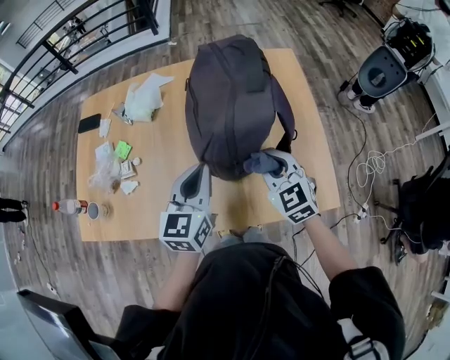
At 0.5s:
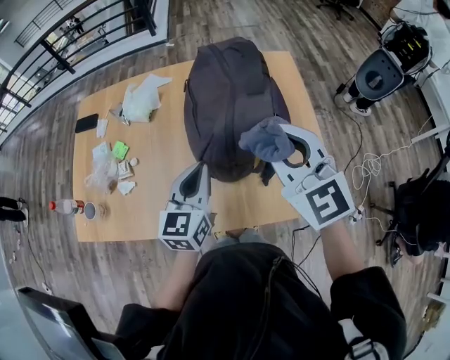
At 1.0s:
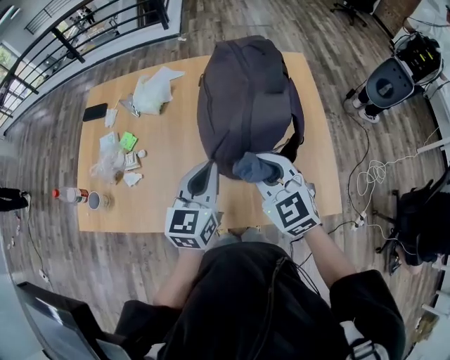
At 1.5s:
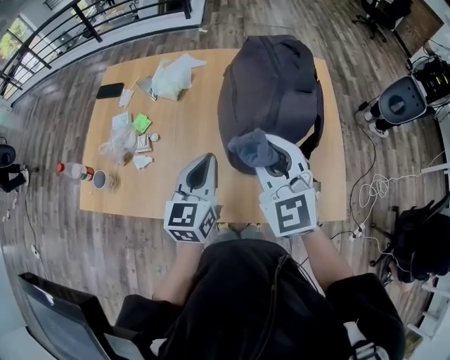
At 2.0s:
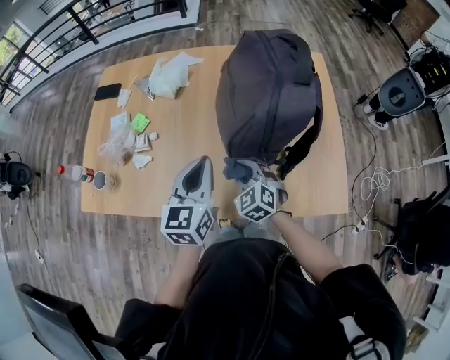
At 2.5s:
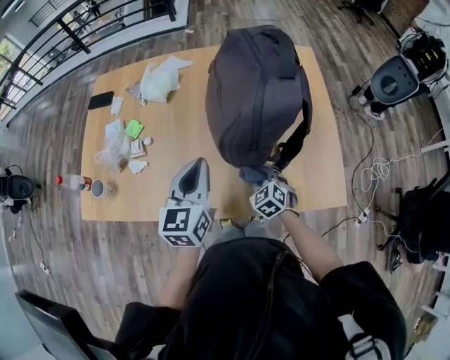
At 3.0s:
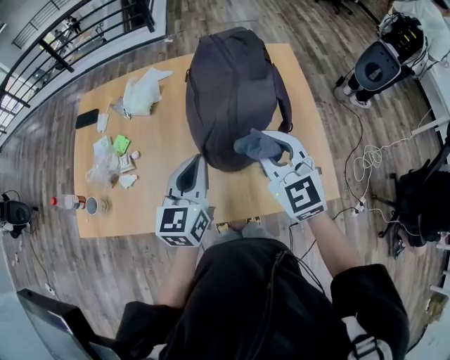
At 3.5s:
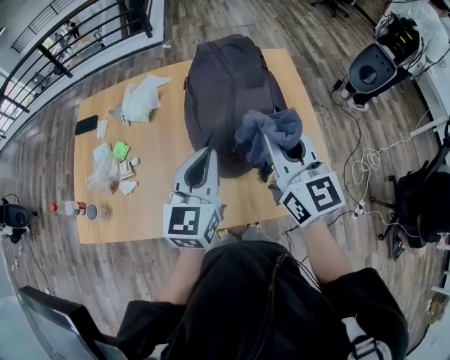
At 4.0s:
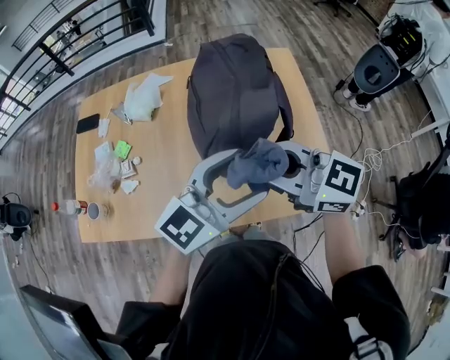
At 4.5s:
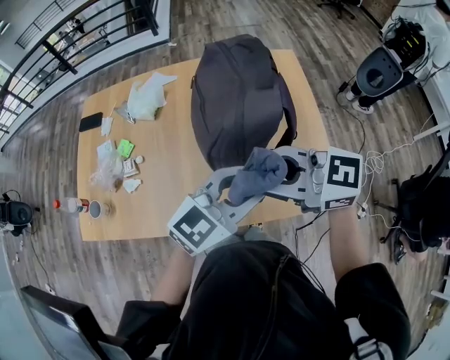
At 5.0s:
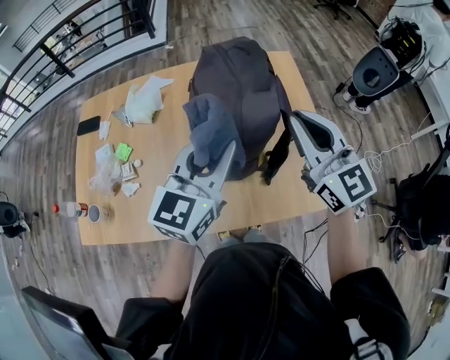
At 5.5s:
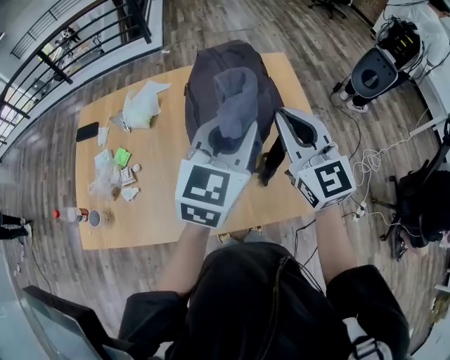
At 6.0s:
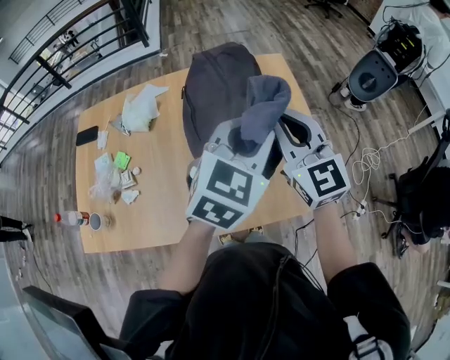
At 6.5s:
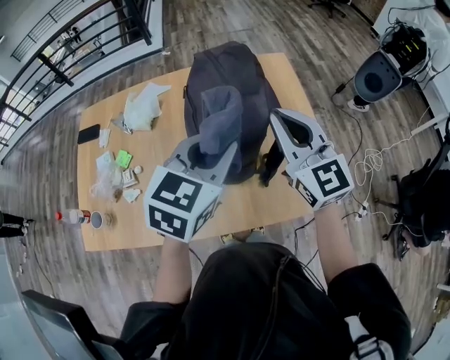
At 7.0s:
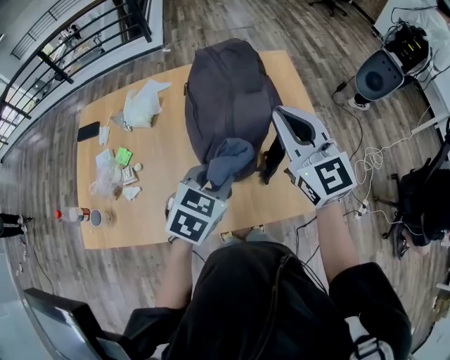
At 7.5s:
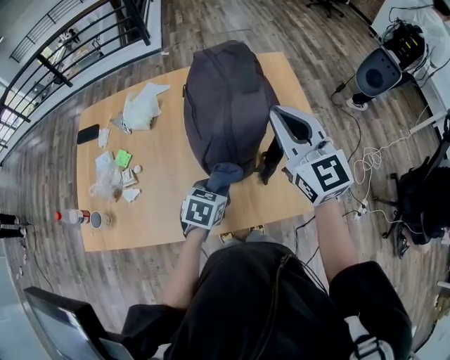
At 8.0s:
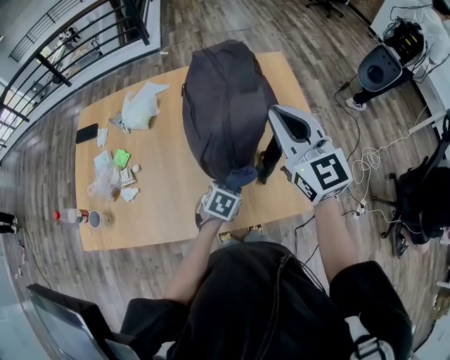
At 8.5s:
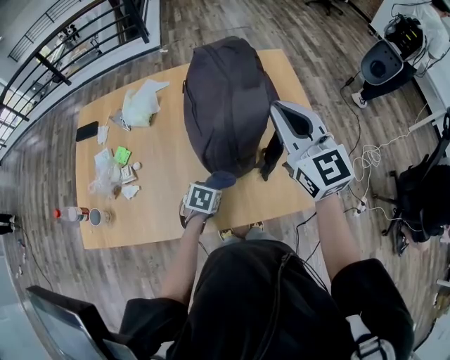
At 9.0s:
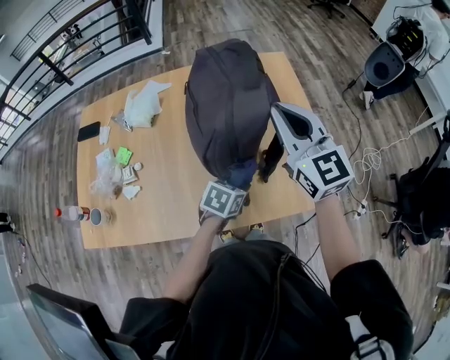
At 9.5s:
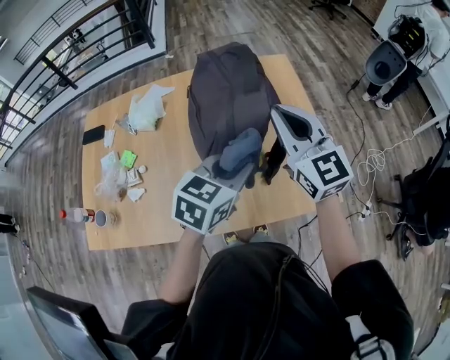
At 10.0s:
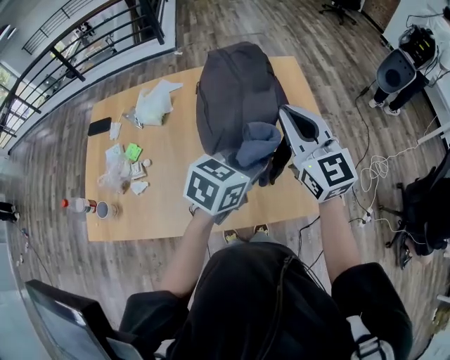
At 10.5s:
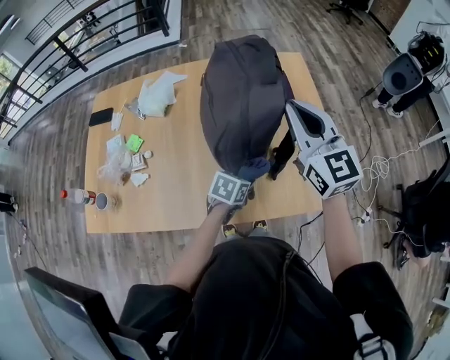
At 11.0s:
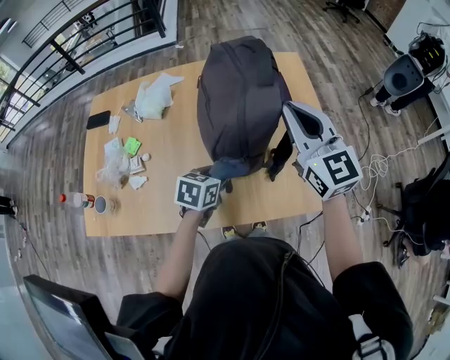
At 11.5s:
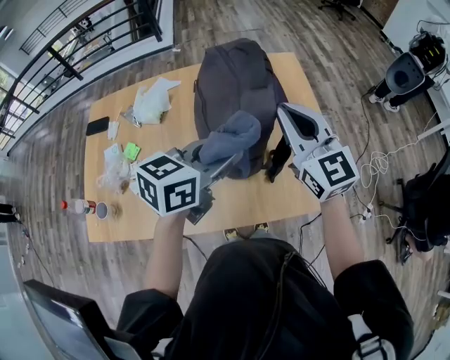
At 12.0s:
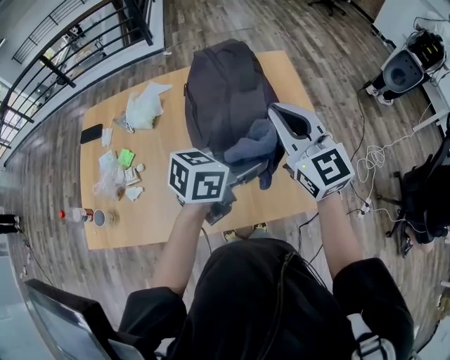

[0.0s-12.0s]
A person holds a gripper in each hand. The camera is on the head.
0.0s to 2.0s: The right gripper goes up and down, about 30 cm each way, reversing 3 times, while the left gripper heads to the left, covering roughly 5 cm.
2.0s to 4.0s: The right gripper moves upward, about 30 cm, and tilts its fingers approximately 30 degrees upward, while the left gripper shifts by about 20 cm, swivels about 50 degrees, and opens.
4.0s to 6.0s: The left gripper shifts by some 10 cm, changes its angle by about 30 degrees, and closes its fingers. Meanwhile the right gripper moves roughly 15 cm, and turns by some 50 degrees.
6.0s to 8.0s: The left gripper travels downward by some 30 cm, and points its fingers approximately 40 degrees further downward.
8.0s to 10.0s: The left gripper travels upward by some 20 cm, and swivels approximately 30 degrees.
10.0s to 12.0s: The left gripper moves up and down over roughly 30 cm, changing direction 2 times, and swivels about 20 degrees.

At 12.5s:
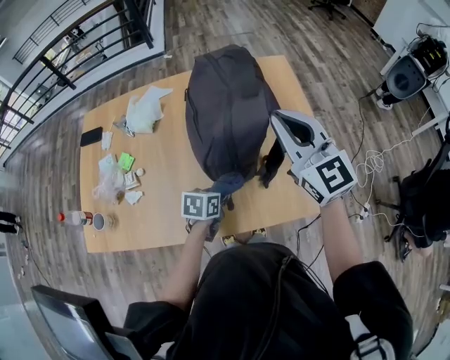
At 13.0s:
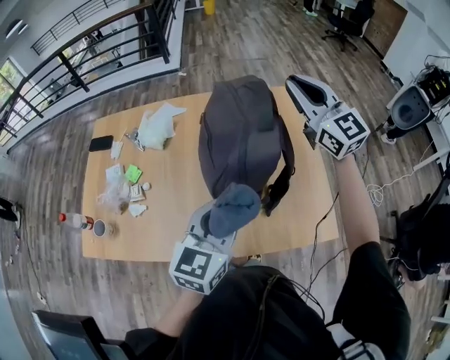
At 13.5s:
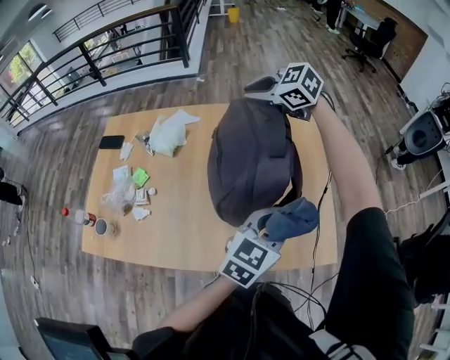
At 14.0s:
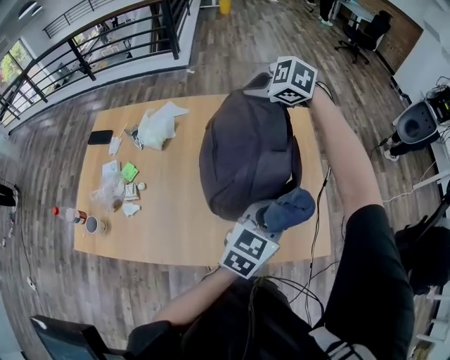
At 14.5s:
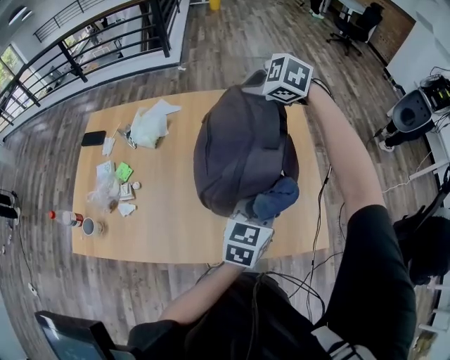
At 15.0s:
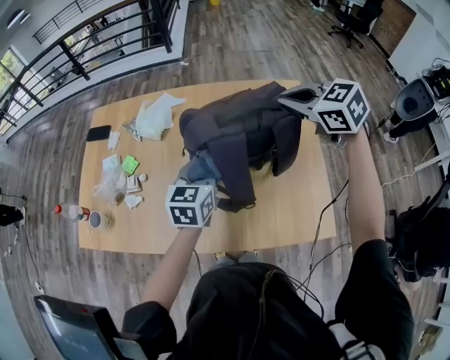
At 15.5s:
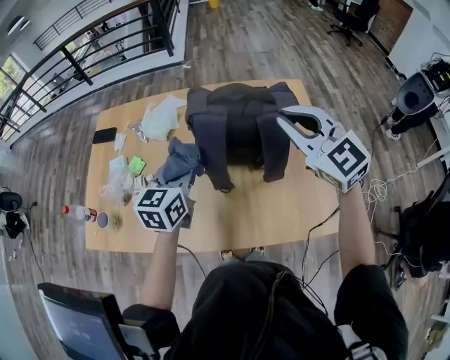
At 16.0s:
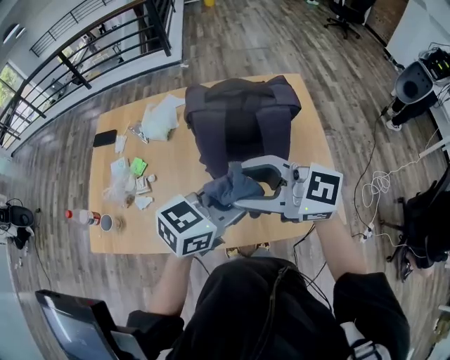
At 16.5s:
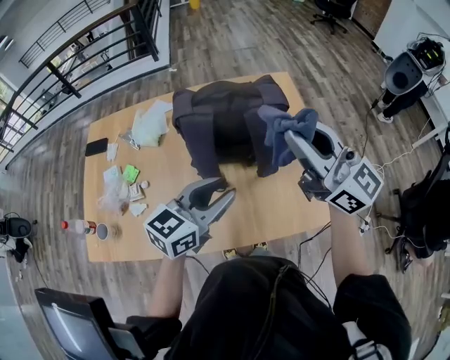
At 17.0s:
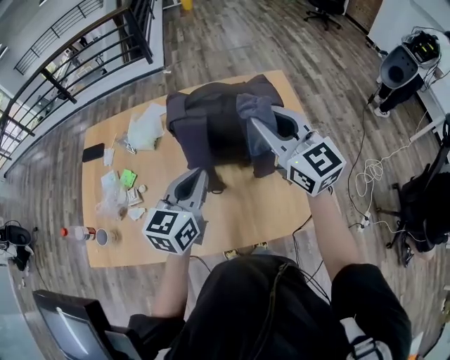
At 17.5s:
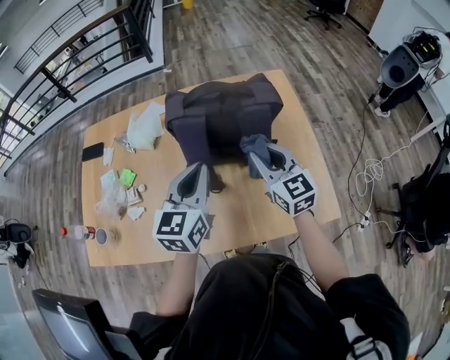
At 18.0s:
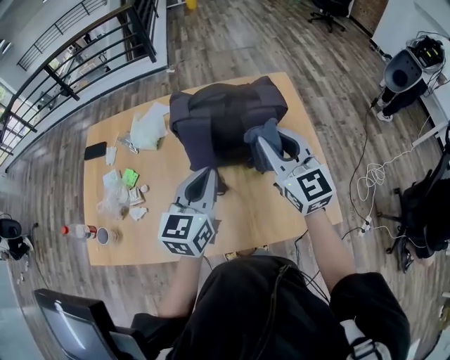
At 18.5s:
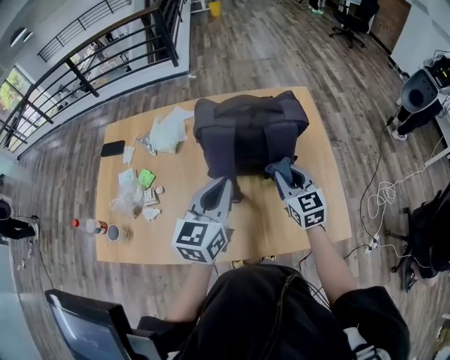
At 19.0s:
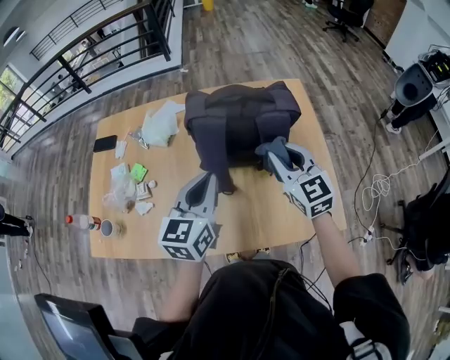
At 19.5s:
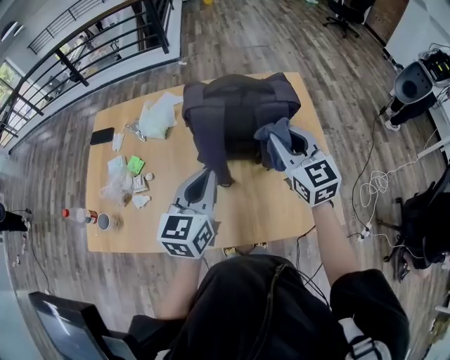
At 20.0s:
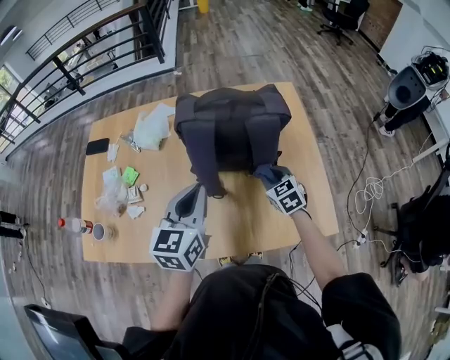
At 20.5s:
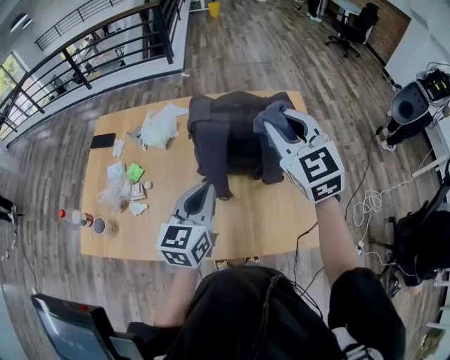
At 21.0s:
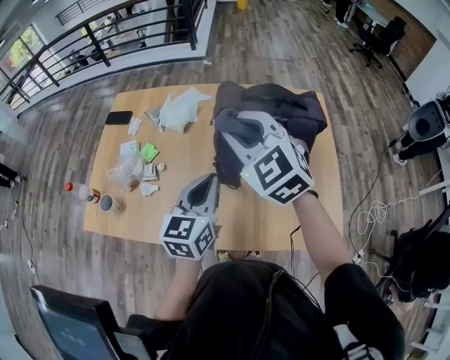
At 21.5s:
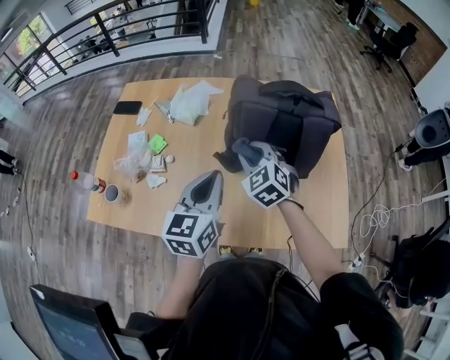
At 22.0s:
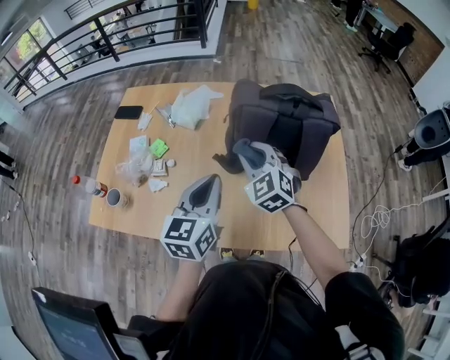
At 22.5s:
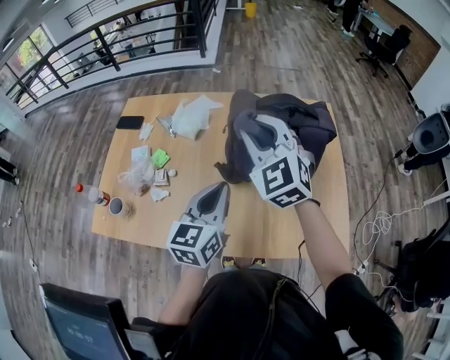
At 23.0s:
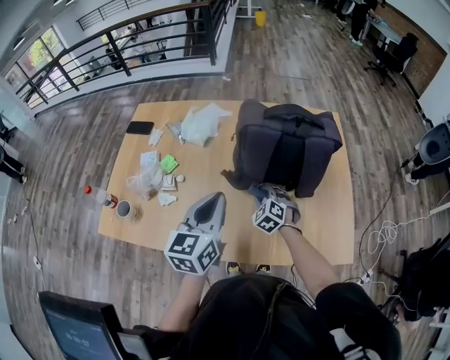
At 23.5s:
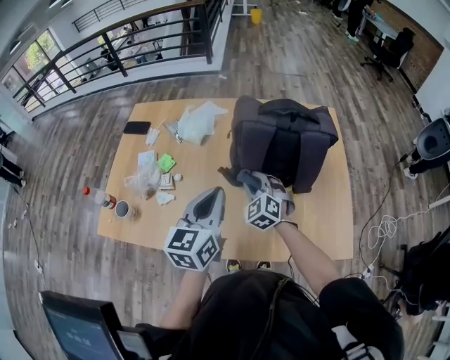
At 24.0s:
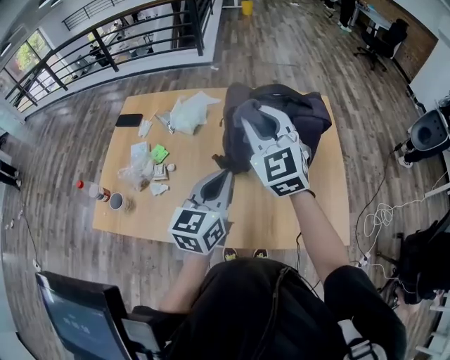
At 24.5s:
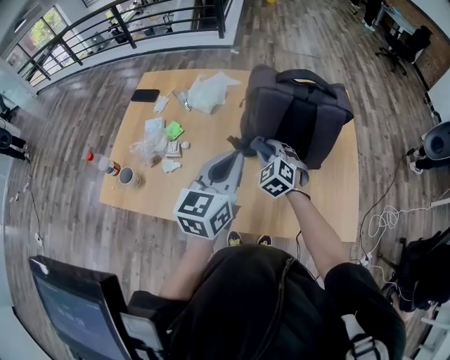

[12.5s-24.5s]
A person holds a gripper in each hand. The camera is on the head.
12.5s to 14.5s: The right gripper shifts about 25 cm forward, and tilts its fingers about 50 degrees downward. Meanwhile the left gripper travels upward and to the right by some 25 cm, and turns by roughly 40 degrees.
14.5s to 16.5s: The right gripper shifts by about 30 cm, tilts its fingers some 70 degrees upward, and opens and closes again, while the left gripper rotates roughly 20 degrees.
16.5s to 18.5s: The left gripper moves forward, about 5 cm, changes its angle by approximately 30 degrees, and closes its fingers, while the right gripper swings up and down, approximately 25 cm each way, with 2 reversals, and points its fingers some 30 degrees further downward.
18.5s to 20.5s: The right gripper moves up and down over some 30 cm, changing direction 2 times, and turns by roughly 20 degrees.
20.5s to 22.5s: The left gripper is displaced to the left by roughly 5 cm. The right gripper heads to the left, covering some 15 cm, and reaches roughly 20 cm downward, then returns.
22.5s to 24.5s: The right gripper swings up and down, about 35 cm each way, with 2 reversals, and turns by some 20 degrees.

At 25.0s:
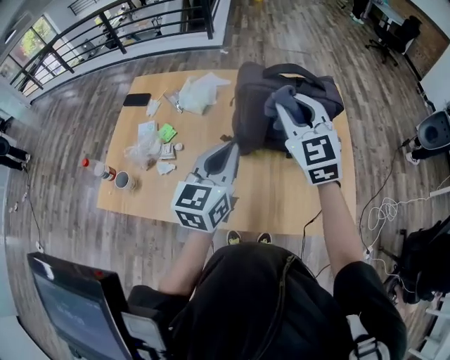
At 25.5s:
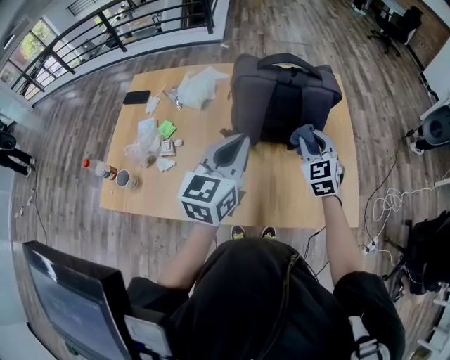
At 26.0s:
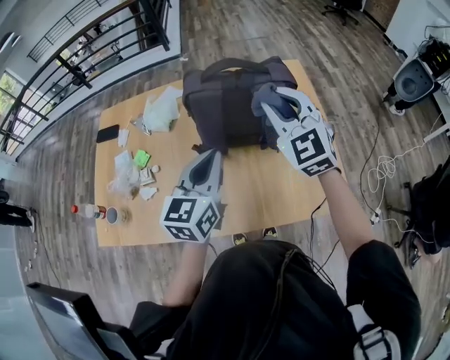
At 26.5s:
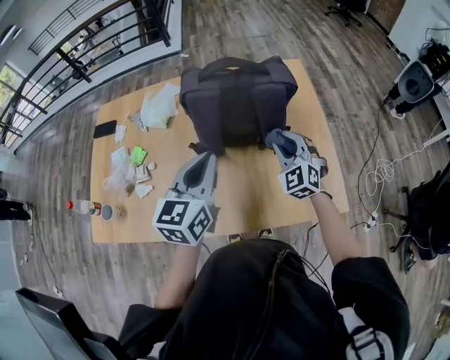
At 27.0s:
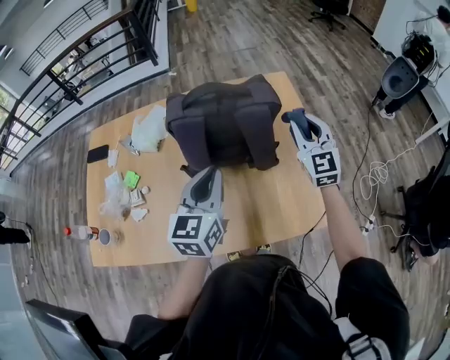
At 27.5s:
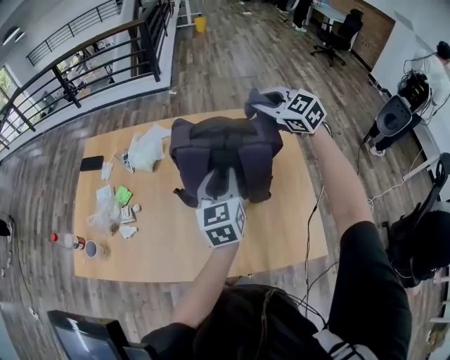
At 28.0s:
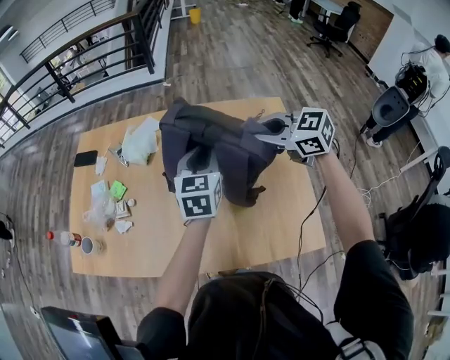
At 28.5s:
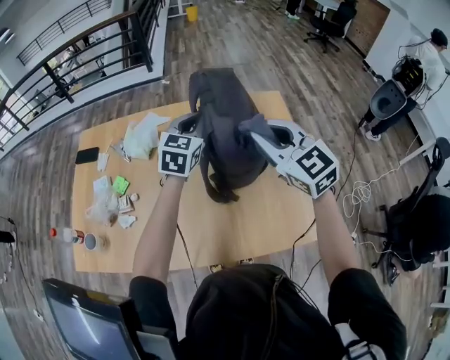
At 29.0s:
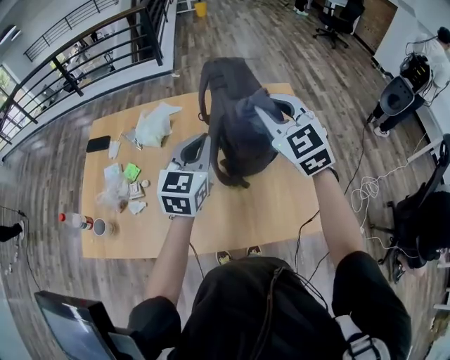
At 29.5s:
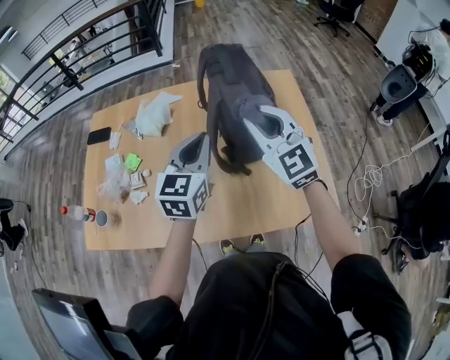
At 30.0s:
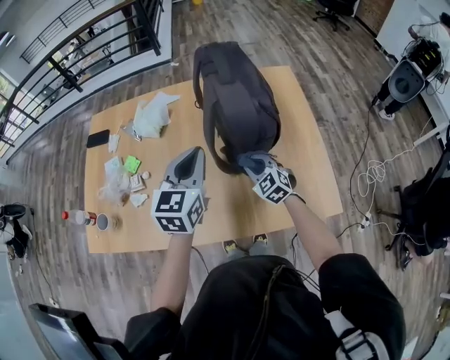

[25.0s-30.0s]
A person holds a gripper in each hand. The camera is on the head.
25.0s to 27.5s: The left gripper changes place by approximately 15 cm, and opens. Meanwhile the right gripper swings up and down, some 20 cm each way, with 3 reversals, and turns by approximately 20 degrees.
27.5s to 30.0s: The left gripper changes place by about 10 cm, and closes its fingers. Meanwhile the right gripper shifts some 25 cm downward.
